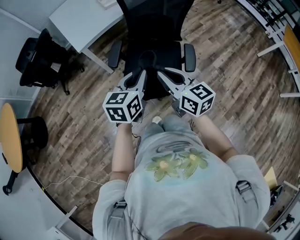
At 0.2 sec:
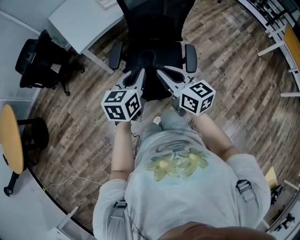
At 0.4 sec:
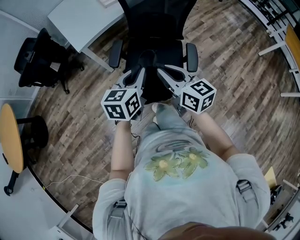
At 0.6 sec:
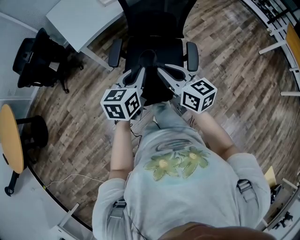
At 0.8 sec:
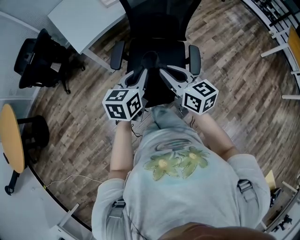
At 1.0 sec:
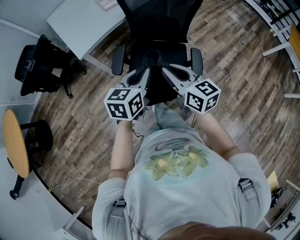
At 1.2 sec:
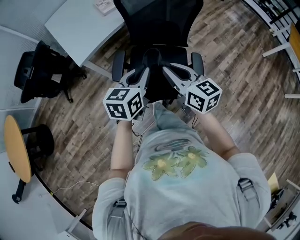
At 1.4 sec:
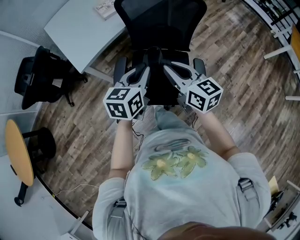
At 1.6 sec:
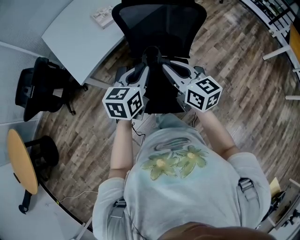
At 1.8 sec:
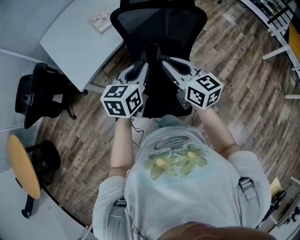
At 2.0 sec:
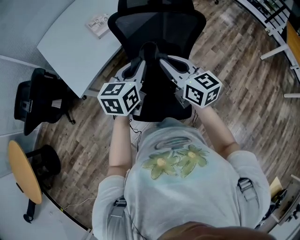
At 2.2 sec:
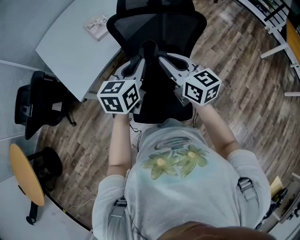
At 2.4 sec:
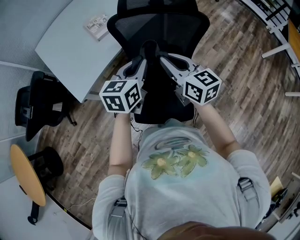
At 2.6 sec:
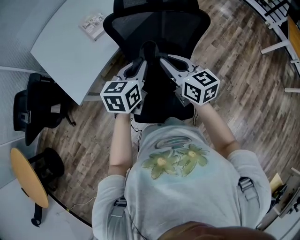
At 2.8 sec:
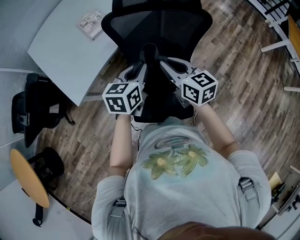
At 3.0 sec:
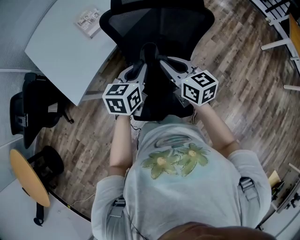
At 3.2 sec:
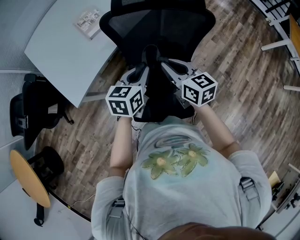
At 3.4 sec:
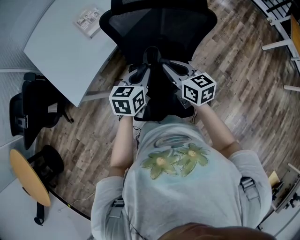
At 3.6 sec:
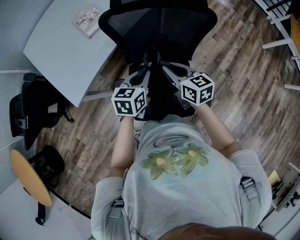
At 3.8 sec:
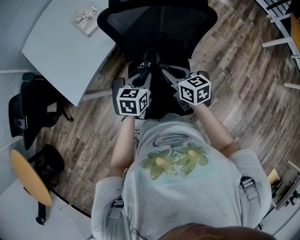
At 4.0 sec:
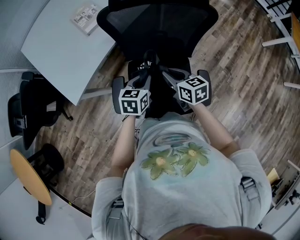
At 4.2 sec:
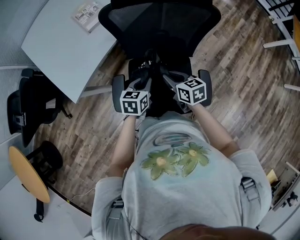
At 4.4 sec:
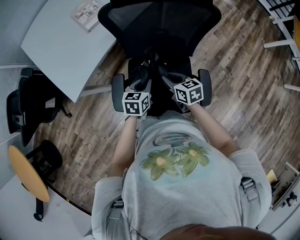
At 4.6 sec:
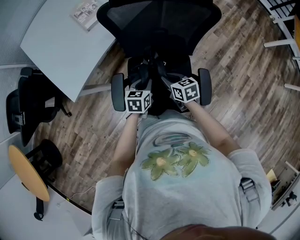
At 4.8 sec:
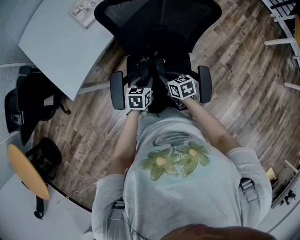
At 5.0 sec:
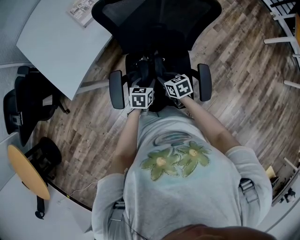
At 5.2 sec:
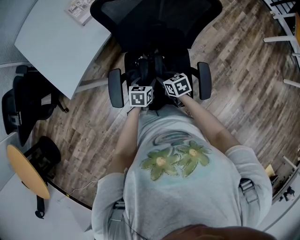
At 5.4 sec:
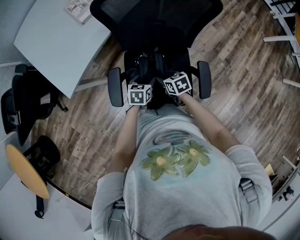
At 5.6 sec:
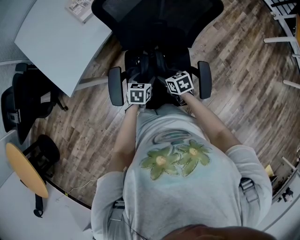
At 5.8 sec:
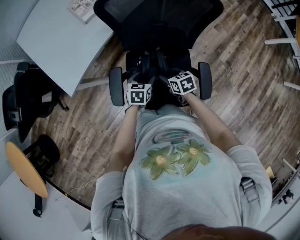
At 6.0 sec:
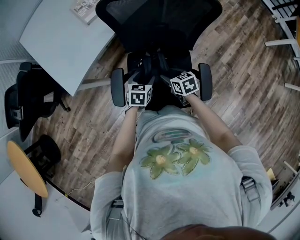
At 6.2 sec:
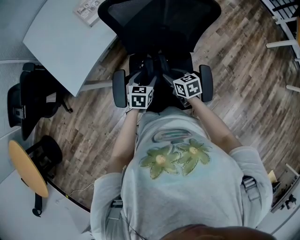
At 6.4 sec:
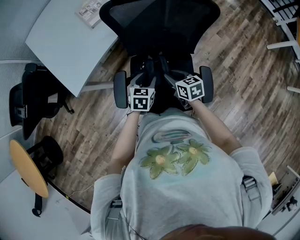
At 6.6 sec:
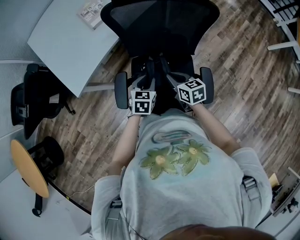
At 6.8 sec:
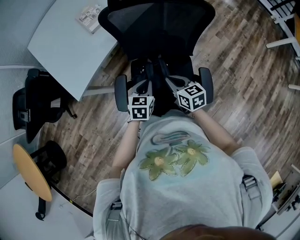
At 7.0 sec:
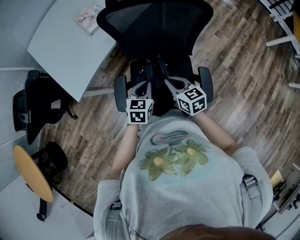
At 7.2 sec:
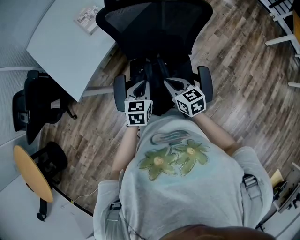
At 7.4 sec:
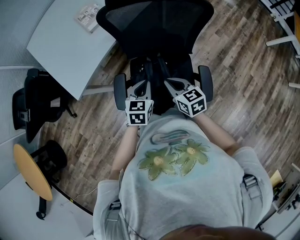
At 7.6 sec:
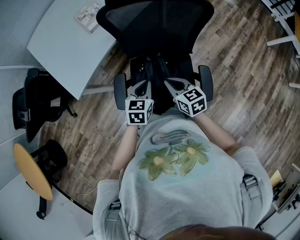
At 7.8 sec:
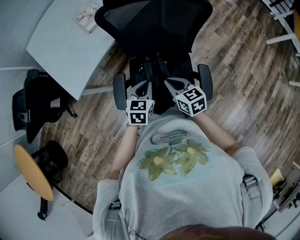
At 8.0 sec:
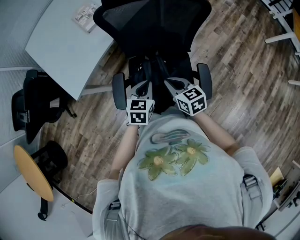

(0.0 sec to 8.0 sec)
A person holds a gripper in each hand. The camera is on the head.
0.0 sec - 1.6 sec: The grippers both shift forward by approximately 25 cm.
1.6 sec - 3.2 sec: Both grippers move forward and downward, about 15 cm.
3.2 sec - 4.8 sec: Both grippers move downward, roughly 20 cm. The right gripper rotates about 30 degrees.
4.8 sec - 6.4 sec: The right gripper opens and closes again, while the left gripper opens its fingers.
6.4 sec - 8.0 sec: Both grippers move upward, about 5 cm. The right gripper closes. The left gripper closes up.

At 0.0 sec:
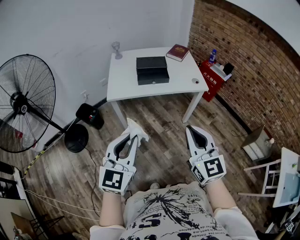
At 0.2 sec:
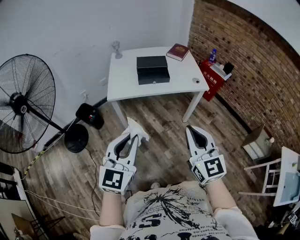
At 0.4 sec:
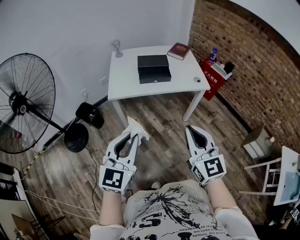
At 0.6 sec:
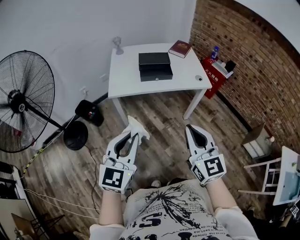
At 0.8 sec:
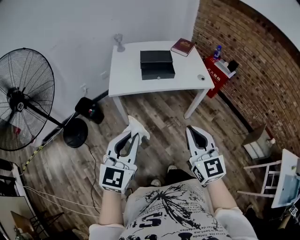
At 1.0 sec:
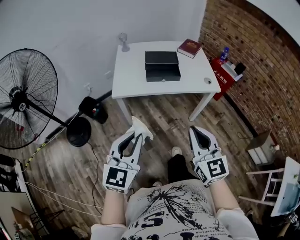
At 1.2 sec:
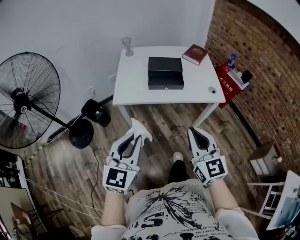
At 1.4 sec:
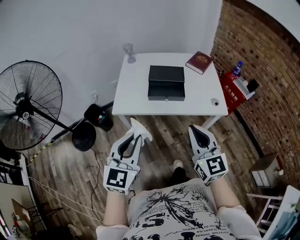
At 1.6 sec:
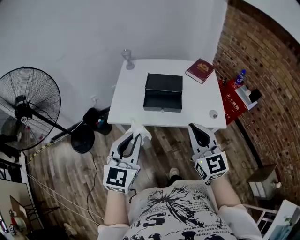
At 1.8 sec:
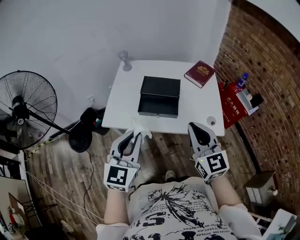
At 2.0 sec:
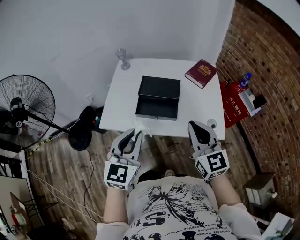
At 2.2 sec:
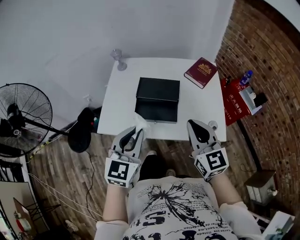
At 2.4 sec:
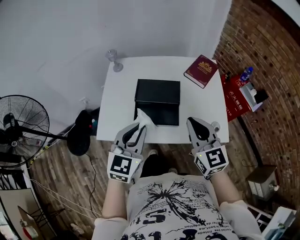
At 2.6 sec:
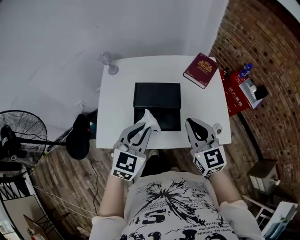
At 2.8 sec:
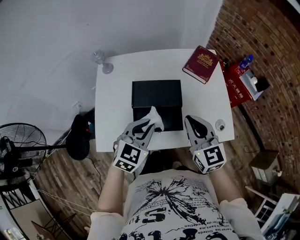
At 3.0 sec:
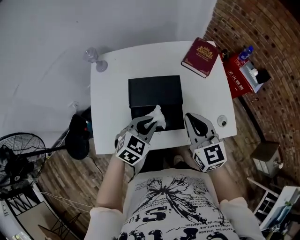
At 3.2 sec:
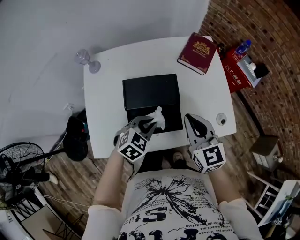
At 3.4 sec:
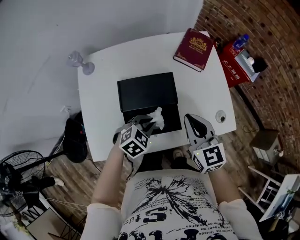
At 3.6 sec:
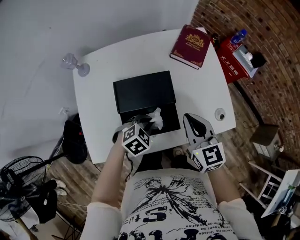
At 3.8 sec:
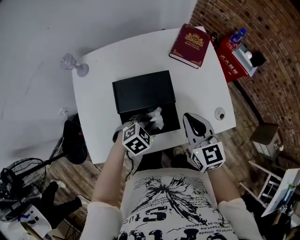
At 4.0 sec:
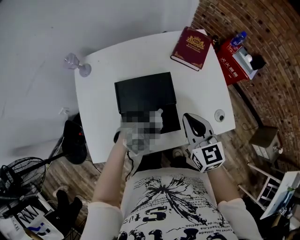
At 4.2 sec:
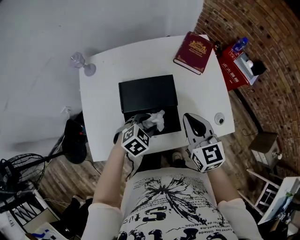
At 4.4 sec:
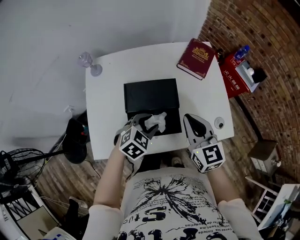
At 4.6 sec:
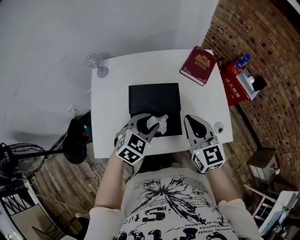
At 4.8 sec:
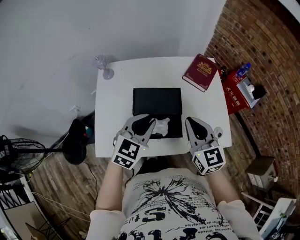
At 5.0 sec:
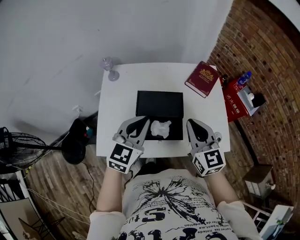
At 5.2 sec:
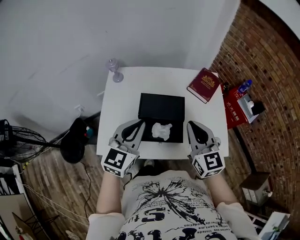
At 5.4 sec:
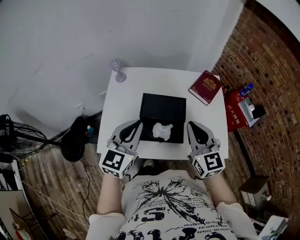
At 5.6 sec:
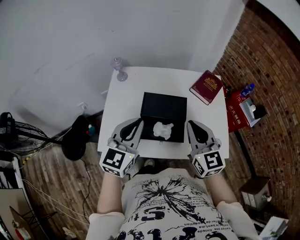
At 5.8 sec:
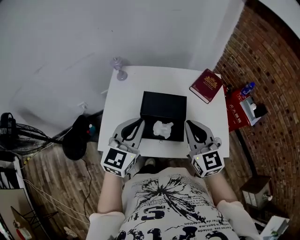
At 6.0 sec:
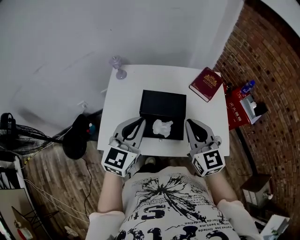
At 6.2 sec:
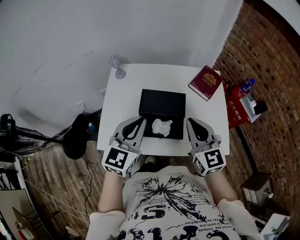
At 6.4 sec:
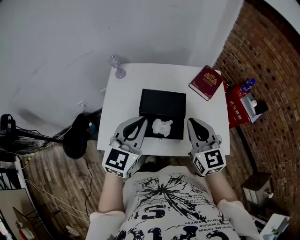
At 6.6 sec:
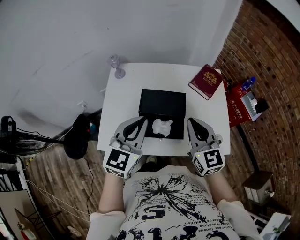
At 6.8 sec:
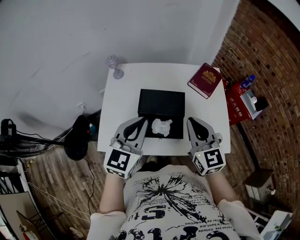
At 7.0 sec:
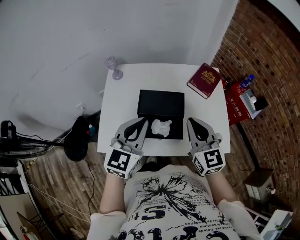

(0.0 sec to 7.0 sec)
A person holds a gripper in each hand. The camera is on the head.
0.0 sec - 1.4 sec: Both grippers move forward, approximately 25 cm.
1.4 sec - 2.8 sec: The grippers both shift forward by roughly 40 cm. The left gripper swivels roughly 30 degrees.
2.8 sec - 4.2 sec: The left gripper goes approximately 15 cm downward, swivels about 30 degrees, and opens its fingers, while the right gripper is displaced downward by approximately 5 cm.
4.2 sec - 5.6 sec: The left gripper is displaced upward by roughly 25 cm, tilts its fingers approximately 50 degrees upward, and closes up. The right gripper heads upward, covering roughly 10 cm.
5.6 sec - 7.0 sec: The grippers make only small movements.

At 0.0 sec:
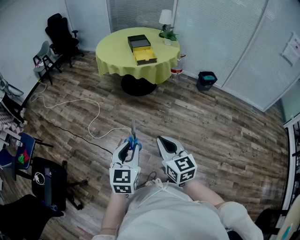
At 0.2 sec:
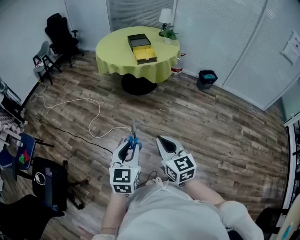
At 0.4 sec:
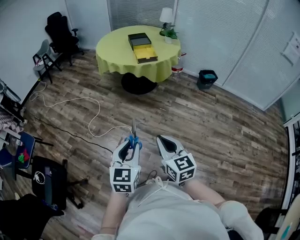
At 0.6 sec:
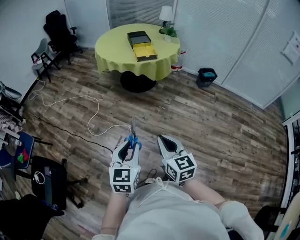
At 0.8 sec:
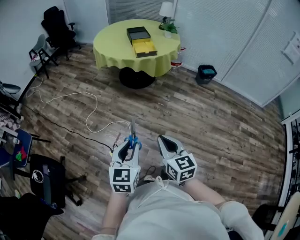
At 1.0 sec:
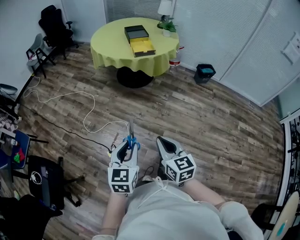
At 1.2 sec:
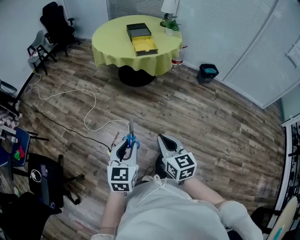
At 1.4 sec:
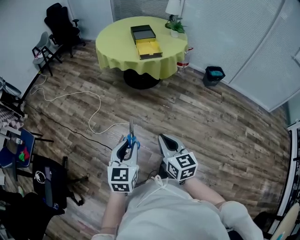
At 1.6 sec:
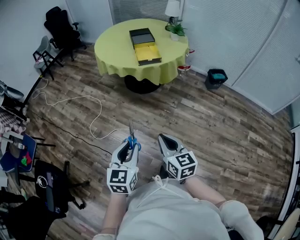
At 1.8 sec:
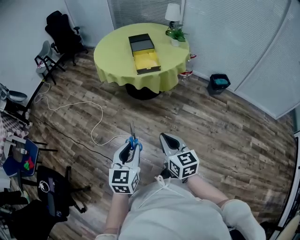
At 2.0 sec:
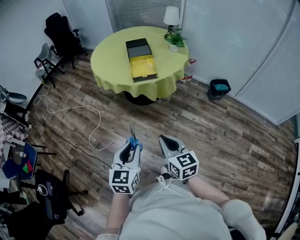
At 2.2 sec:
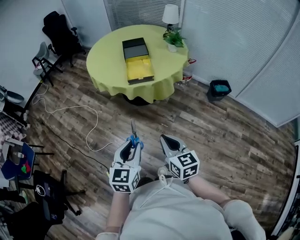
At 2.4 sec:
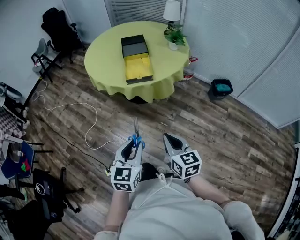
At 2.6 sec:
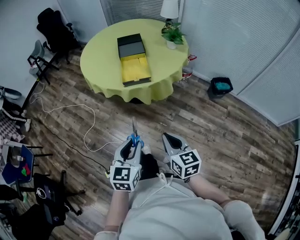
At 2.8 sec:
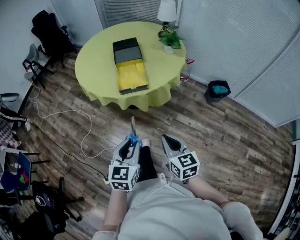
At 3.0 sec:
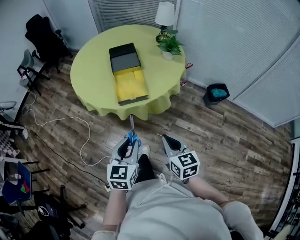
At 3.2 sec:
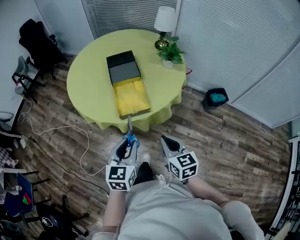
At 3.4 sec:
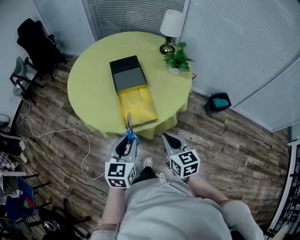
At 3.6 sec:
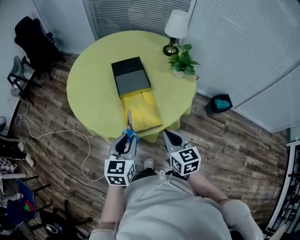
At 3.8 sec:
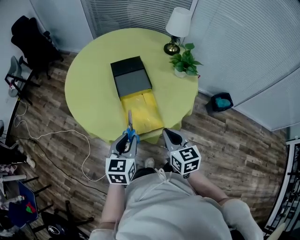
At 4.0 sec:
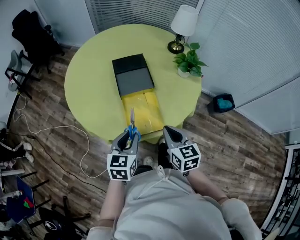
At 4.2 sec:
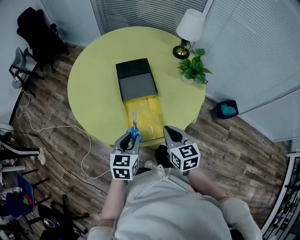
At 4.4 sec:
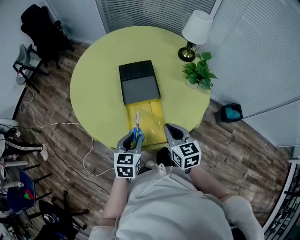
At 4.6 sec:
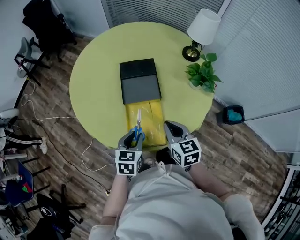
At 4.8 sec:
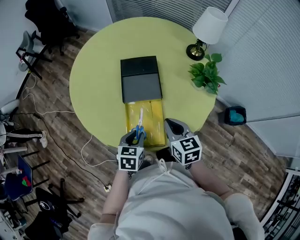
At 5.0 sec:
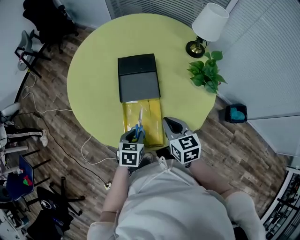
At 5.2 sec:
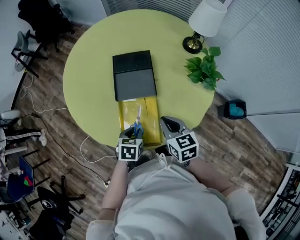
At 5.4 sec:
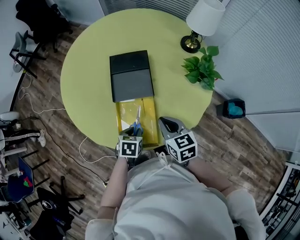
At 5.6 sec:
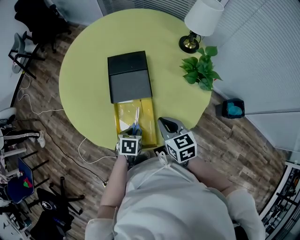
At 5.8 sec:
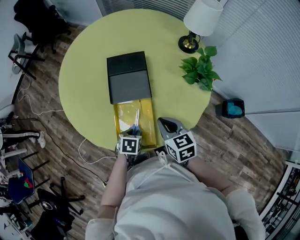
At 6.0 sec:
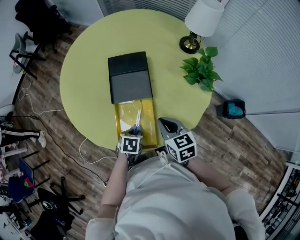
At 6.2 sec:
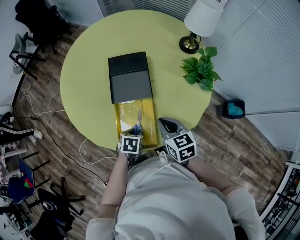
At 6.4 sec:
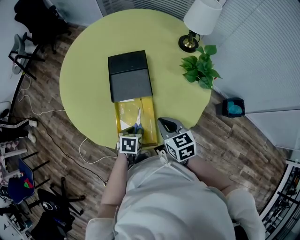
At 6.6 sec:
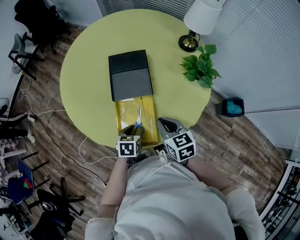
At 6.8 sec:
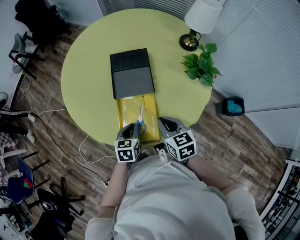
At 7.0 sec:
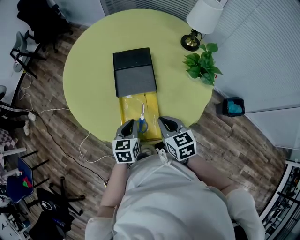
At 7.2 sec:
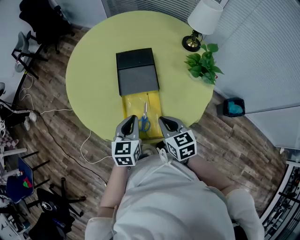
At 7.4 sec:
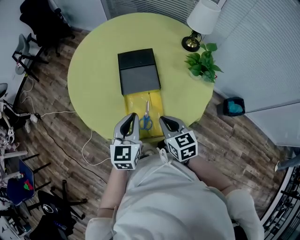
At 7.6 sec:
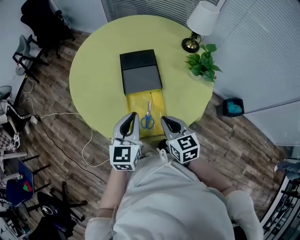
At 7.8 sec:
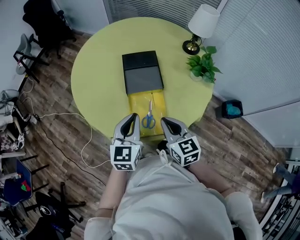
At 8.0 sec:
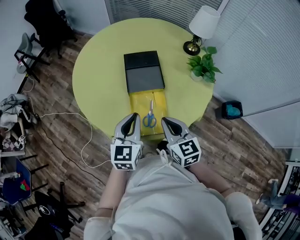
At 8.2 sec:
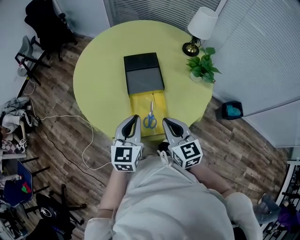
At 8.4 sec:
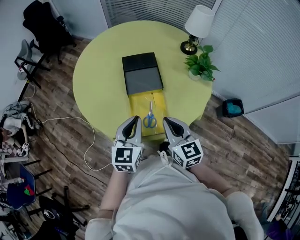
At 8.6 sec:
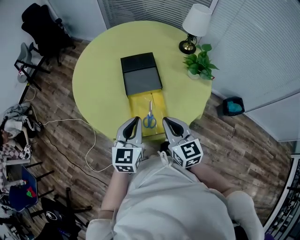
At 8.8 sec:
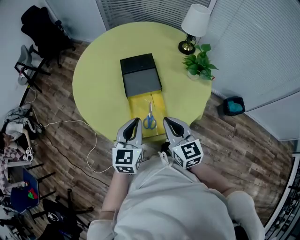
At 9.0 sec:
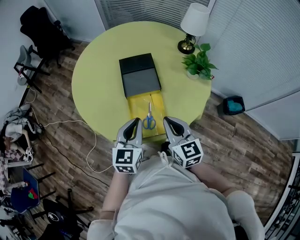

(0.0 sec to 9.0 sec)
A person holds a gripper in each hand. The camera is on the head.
0.0 sec - 1.6 sec: Both grippers travel together forward, roughly 15 cm.
1.6 sec - 3.0 sec: Both grippers are carried forward and to the right, some 40 cm.
3.0 sec - 4.4 sec: The grippers both shift forward by approximately 35 cm.
4.4 sec - 6.0 sec: The right gripper heads forward and downward, covering approximately 10 cm. Meanwhile the left gripper moves downward, approximately 15 cm, and points its fingers about 30 degrees further downward.
6.0 sec - 7.6 sec: The right gripper goes roughly 10 cm backward and to the left. The left gripper moves upward, about 25 cm, and tips its fingers upward by about 50 degrees.
7.6 sec - 9.0 sec: The right gripper shifts by about 5 cm.
